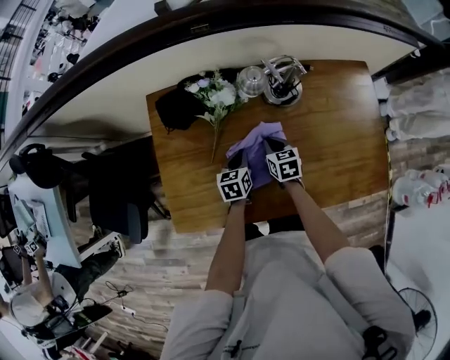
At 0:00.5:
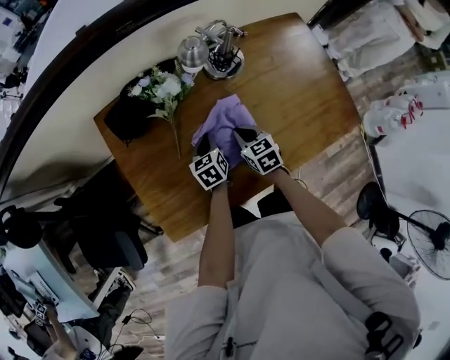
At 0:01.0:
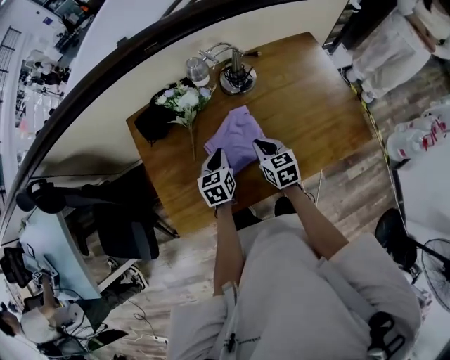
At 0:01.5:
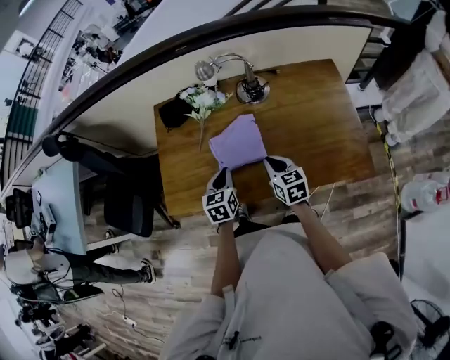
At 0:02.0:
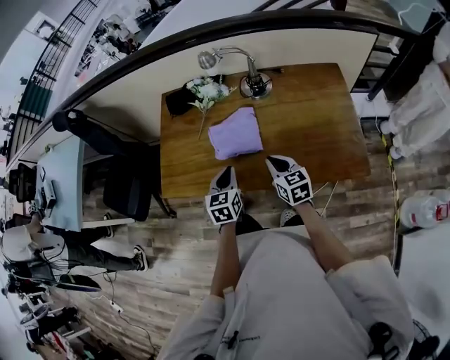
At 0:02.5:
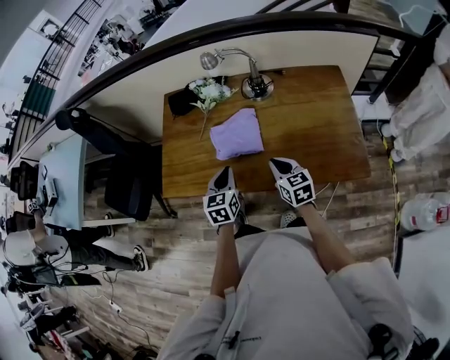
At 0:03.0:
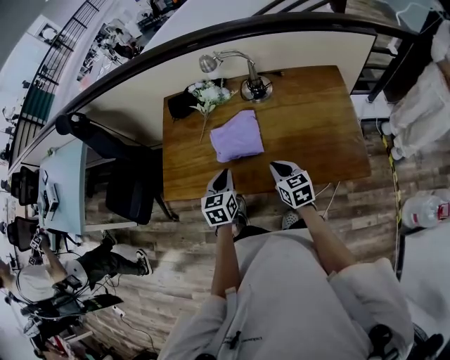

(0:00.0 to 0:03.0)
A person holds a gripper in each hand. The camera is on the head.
0:00.0 - 0:01.5: The right gripper goes some 25 cm backward, upward and to the right, while the left gripper travels backward and upward by roughly 20 cm.
0:01.5 - 0:03.0: The two grippers go roughly 5 cm backward.

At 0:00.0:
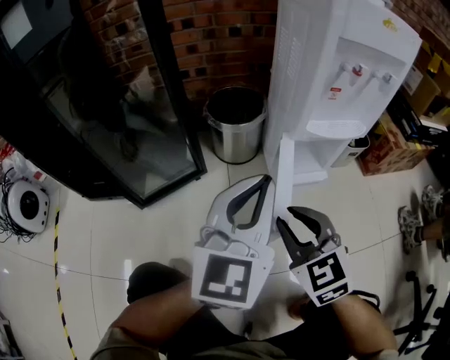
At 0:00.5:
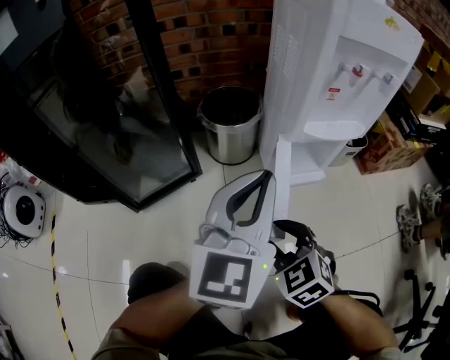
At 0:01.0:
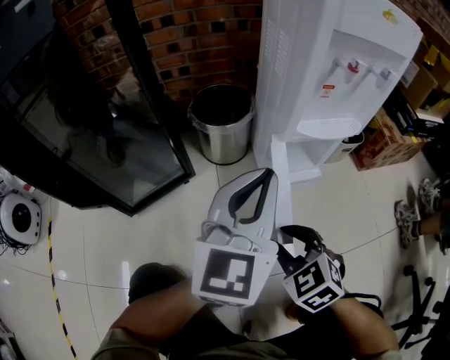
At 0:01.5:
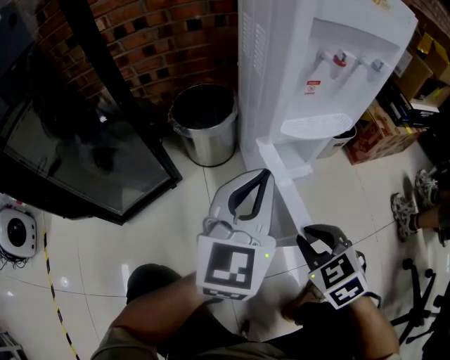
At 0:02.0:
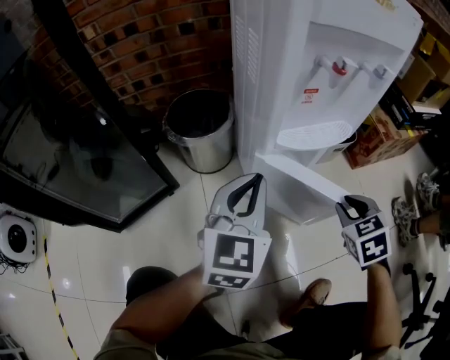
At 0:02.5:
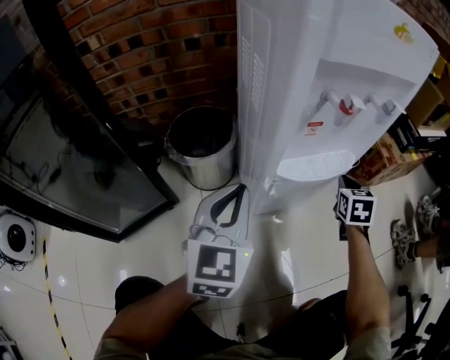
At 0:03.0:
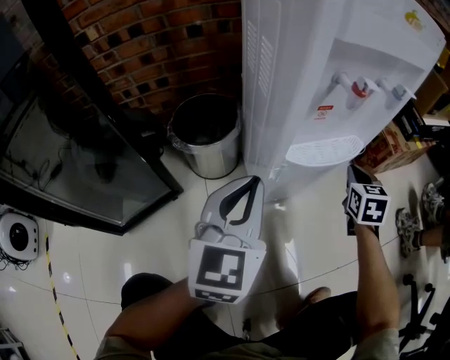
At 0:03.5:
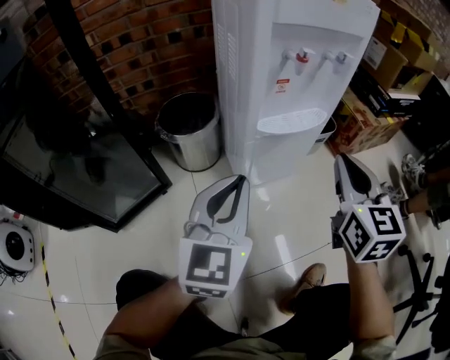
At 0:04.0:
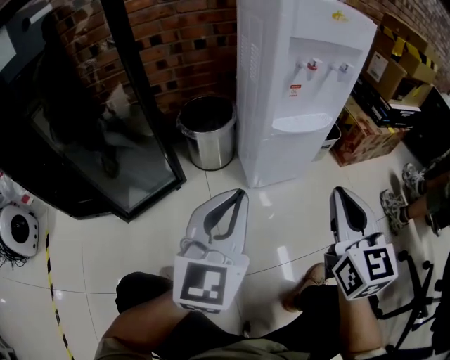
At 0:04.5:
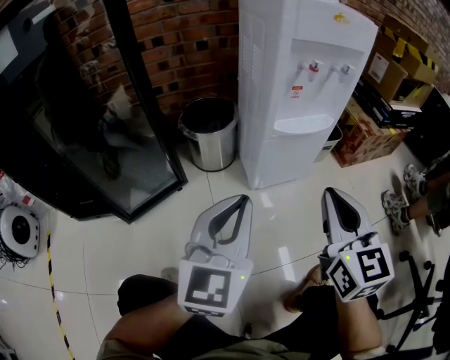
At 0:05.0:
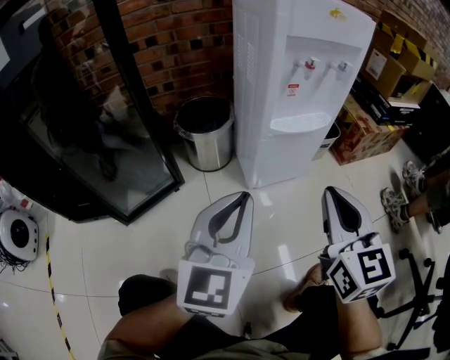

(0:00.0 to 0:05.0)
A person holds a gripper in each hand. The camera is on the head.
0:00.0 - 0:02.5: The left gripper shifts approximately 20 cm forward and downward; the right gripper heads to the right and forward, covering roughly 40 cm, and changes its angle by about 50 degrees.
0:02.5 - 0:05.0: The left gripper goes roughly 20 cm backward and upward; the right gripper goes some 40 cm backward, upward and to the left, and changes its angle by approximately 30 degrees.

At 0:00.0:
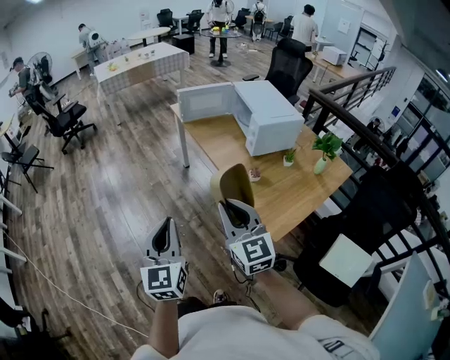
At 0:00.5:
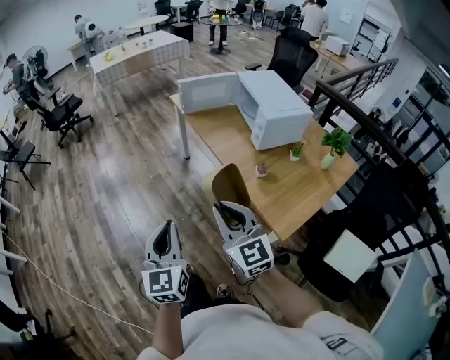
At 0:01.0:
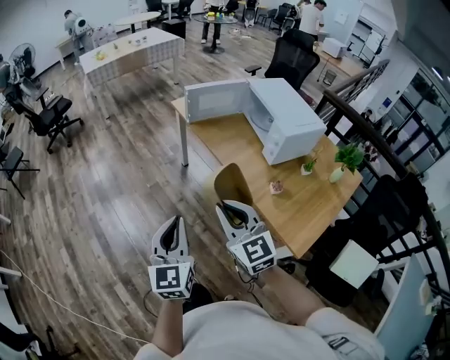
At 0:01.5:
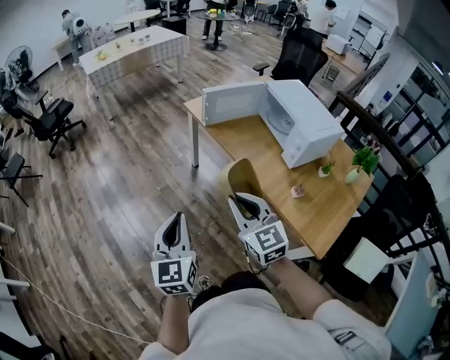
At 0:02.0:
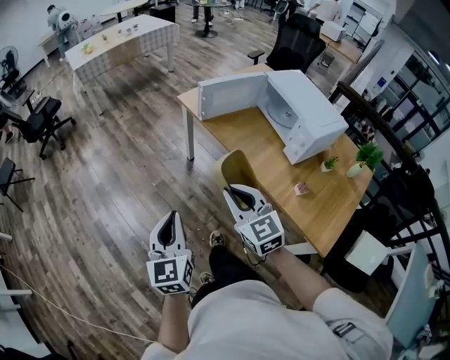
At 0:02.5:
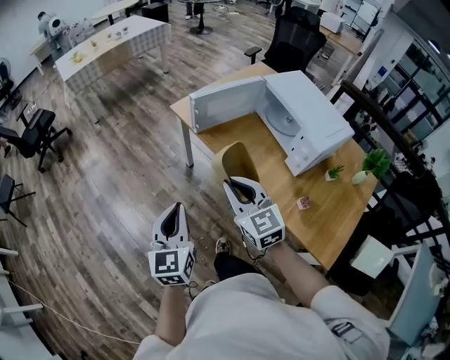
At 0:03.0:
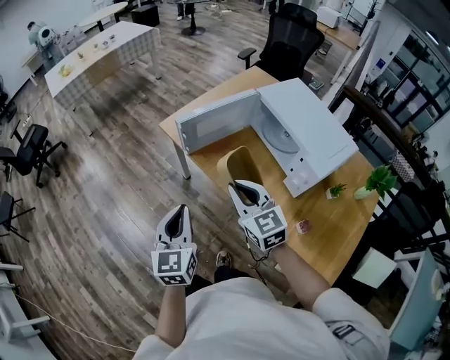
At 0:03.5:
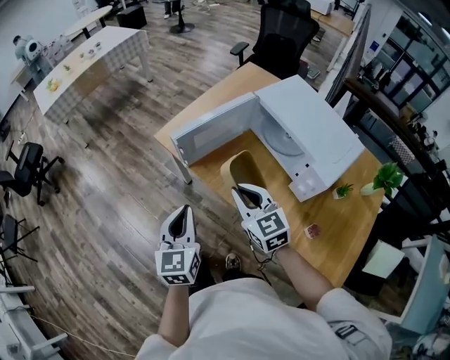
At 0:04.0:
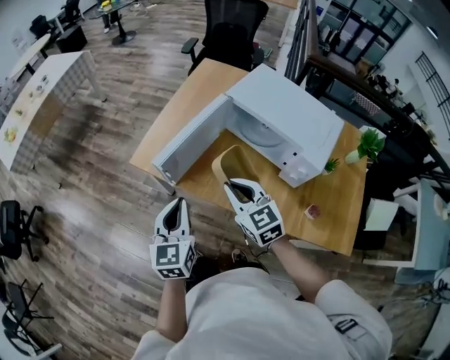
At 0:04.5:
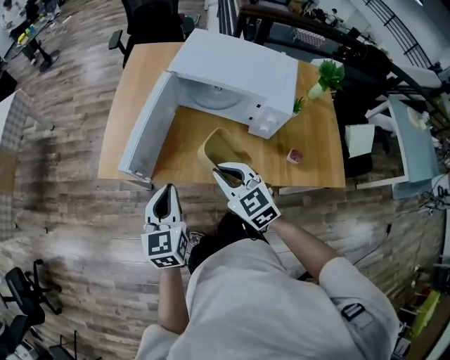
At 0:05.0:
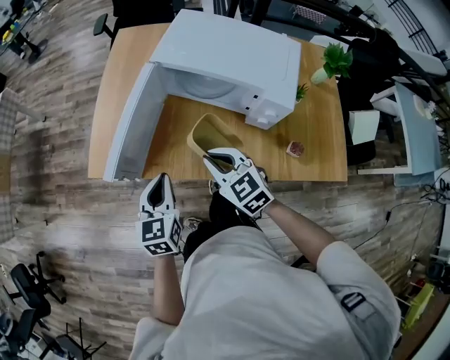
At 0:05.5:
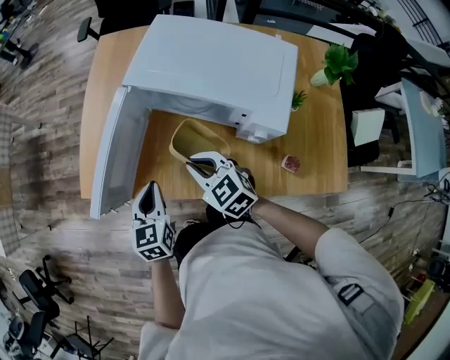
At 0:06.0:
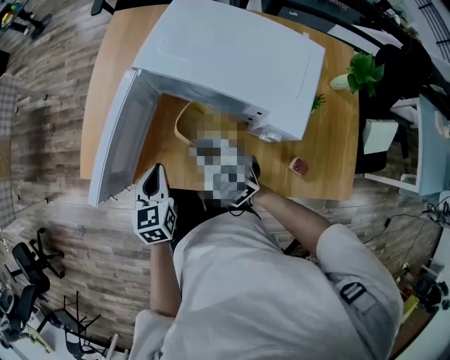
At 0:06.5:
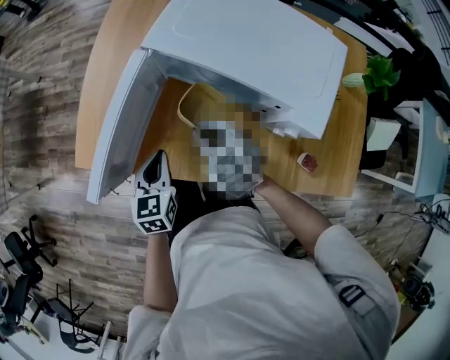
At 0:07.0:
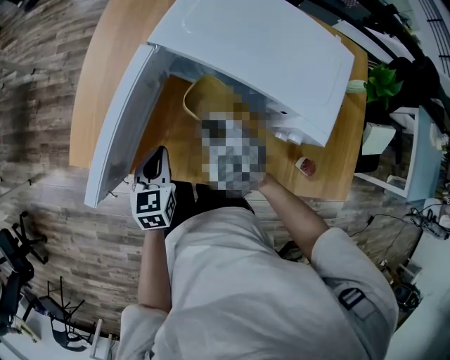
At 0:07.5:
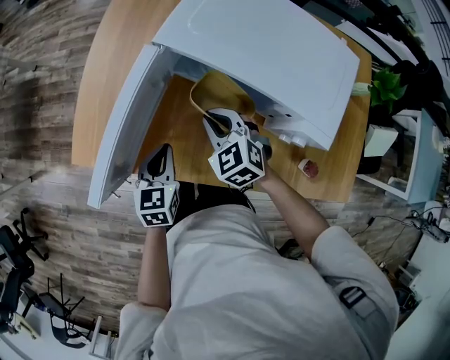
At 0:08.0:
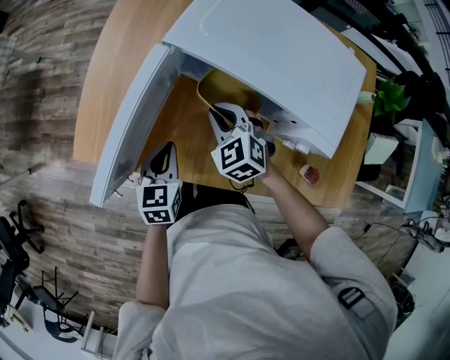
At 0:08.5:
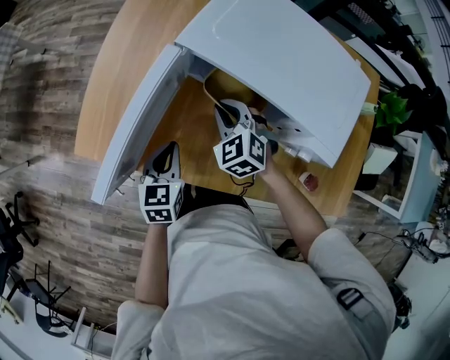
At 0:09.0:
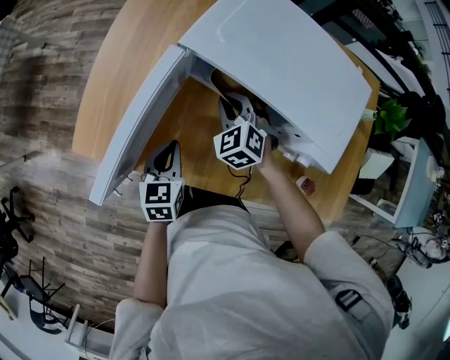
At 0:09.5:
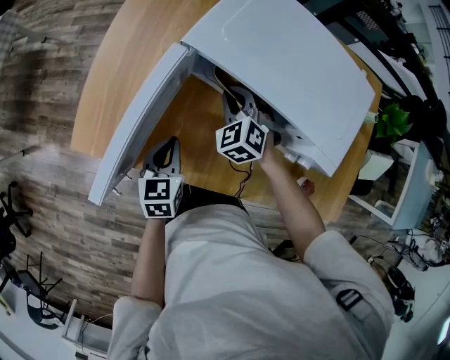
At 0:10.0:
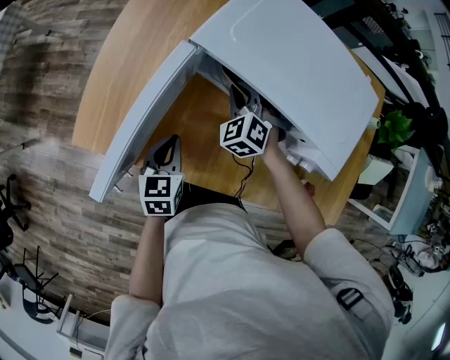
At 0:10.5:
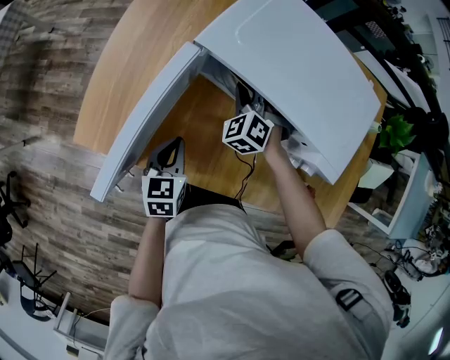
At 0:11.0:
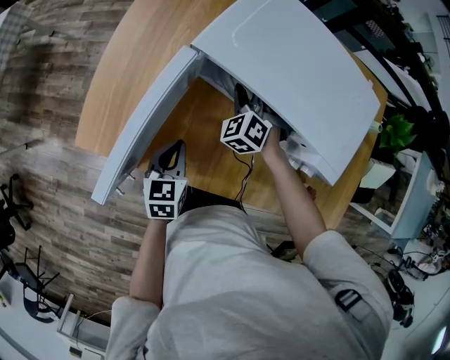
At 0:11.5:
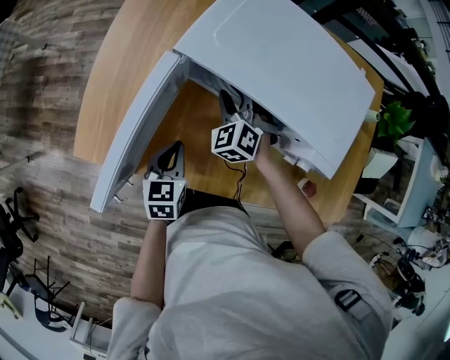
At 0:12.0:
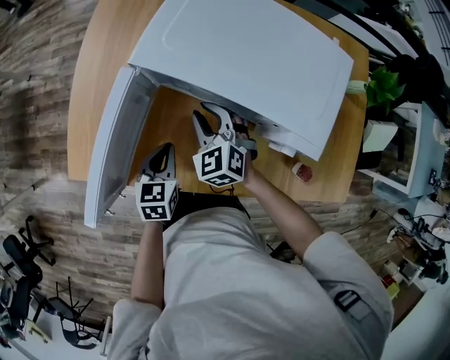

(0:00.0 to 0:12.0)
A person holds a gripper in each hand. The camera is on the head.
0:00.0 - 0:02.0: Both grippers move forward and to the left, some 35 cm.
0:02.0 - 0:04.0: The left gripper shifts by about 40 cm, and swivels roughly 30 degrees. Meanwhile the right gripper ends up about 35 cm from where it was, and rotates some 30 degrees.
0:04.0 - 0:06.0: Both grippers move downward, forward and to the right, about 20 cm. The left gripper turns by approximately 20 degrees.
0:06.0 - 0:08.0: The right gripper shifts approximately 10 cm forward, while the left gripper shifts roughly 5 cm downward.
0:08.0 - 0:10.0: The right gripper moves forward, roughly 10 cm.
0:10.0 - 0:12.0: The left gripper moves some 5 cm. Meanwhile the right gripper heads backward, covering roughly 5 cm, and rotates about 20 degrees.

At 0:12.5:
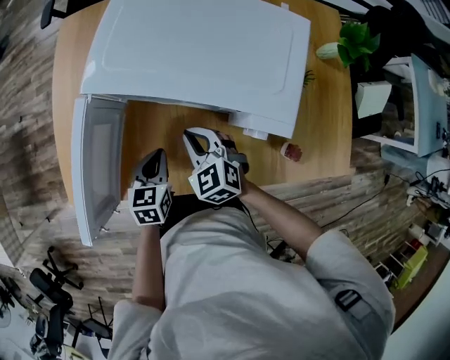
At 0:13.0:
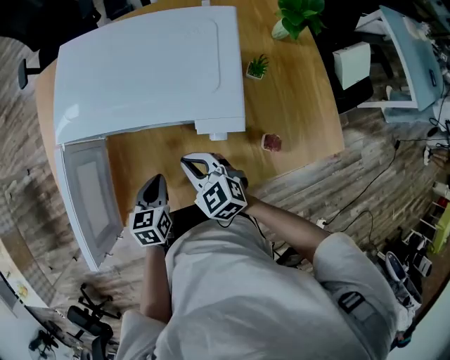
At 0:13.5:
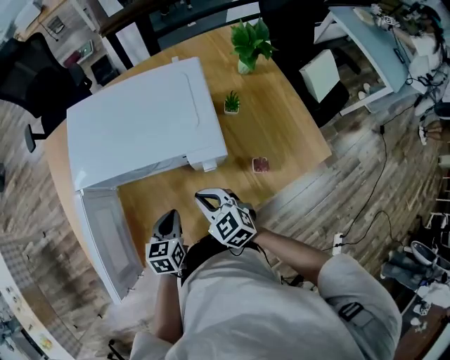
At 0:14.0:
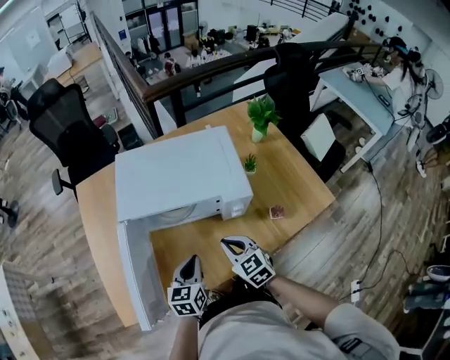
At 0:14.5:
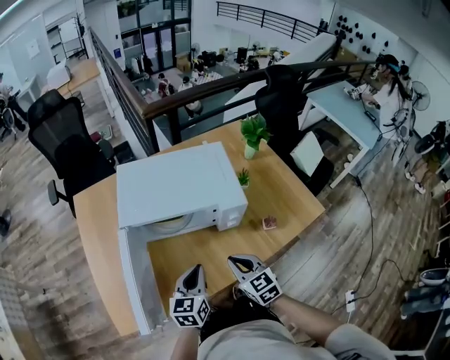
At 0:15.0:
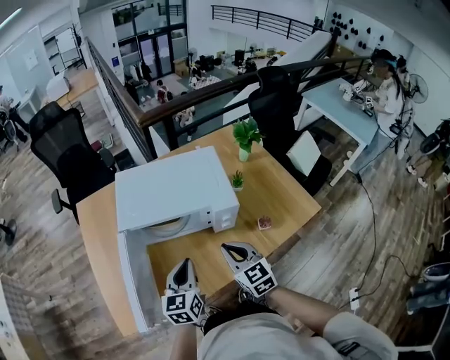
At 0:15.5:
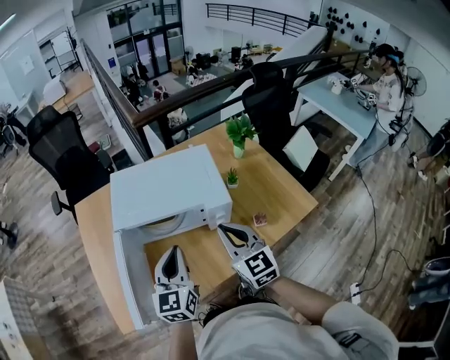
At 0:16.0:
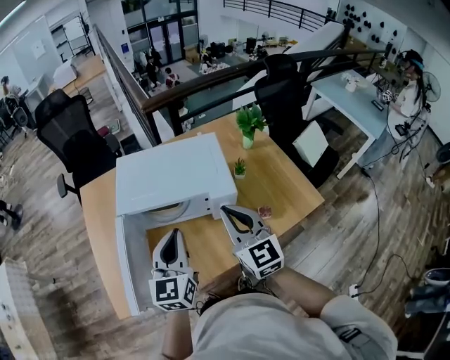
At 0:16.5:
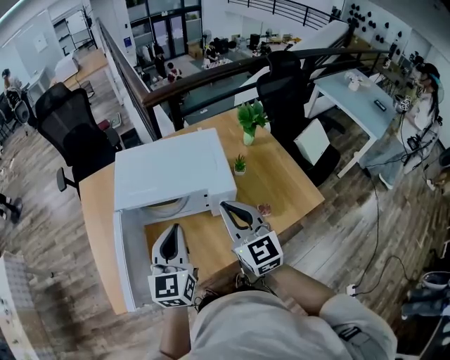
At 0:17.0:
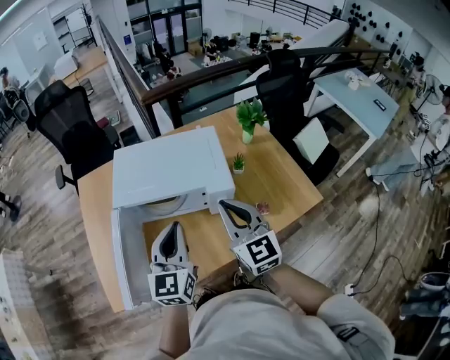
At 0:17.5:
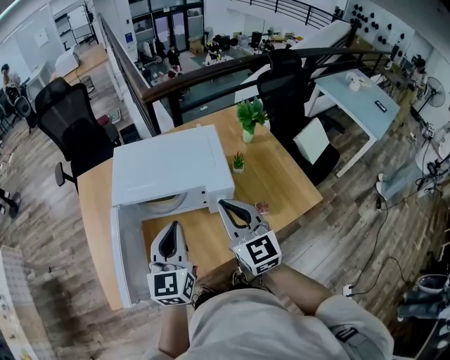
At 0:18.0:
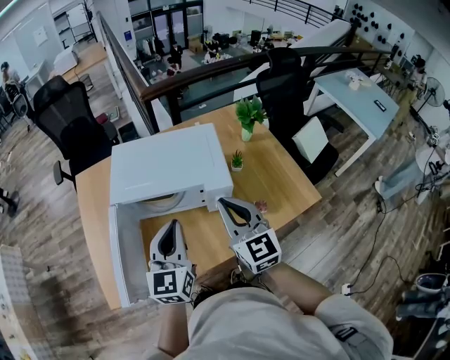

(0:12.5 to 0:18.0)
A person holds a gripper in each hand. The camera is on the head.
0:12.5 - 0:14.5: The left gripper shifts about 15 cm upward, and rotates roughly 30 degrees. The right gripper moves about 15 cm, and changes its angle by about 40 degrees.
0:14.5 - 0:16.0: Both grippers travel together upward, roughly 20 cm. The left gripper changes its angle by approximately 20 degrees. Meanwhile the right gripper changes its angle by about 30 degrees.
0:16.0 - 0:18.0: The grippers stay close to where they were, moving slightly.
